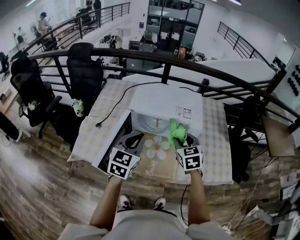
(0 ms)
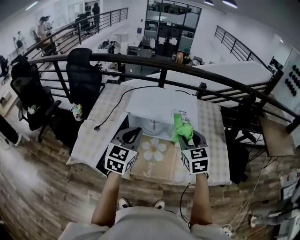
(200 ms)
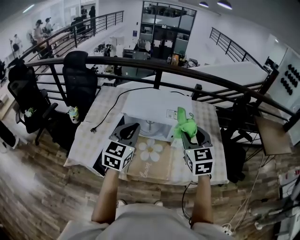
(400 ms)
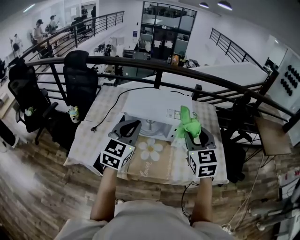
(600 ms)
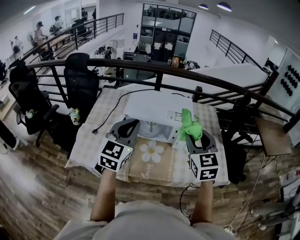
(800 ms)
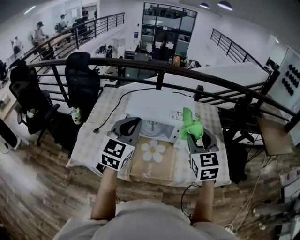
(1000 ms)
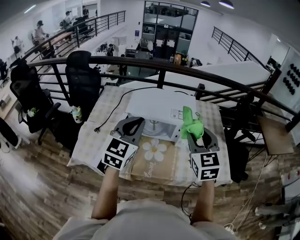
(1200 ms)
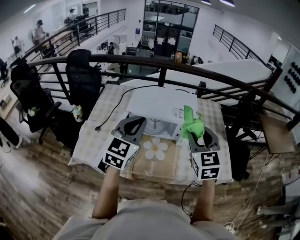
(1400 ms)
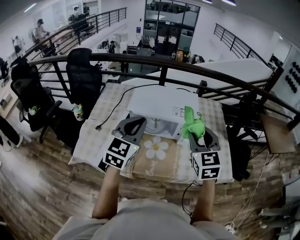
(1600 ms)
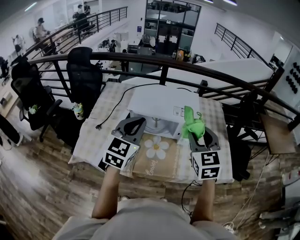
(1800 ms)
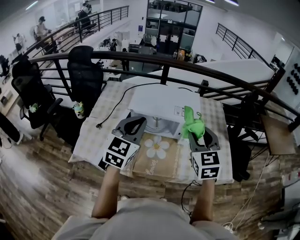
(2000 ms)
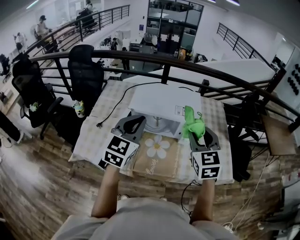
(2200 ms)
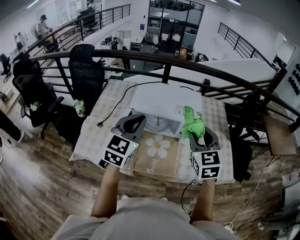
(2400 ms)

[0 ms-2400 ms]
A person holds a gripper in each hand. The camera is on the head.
0 ms to 1200 ms: Both grippers travel together upward, roughly 15 cm.
1200 ms to 2400 ms: The grippers make only small movements.

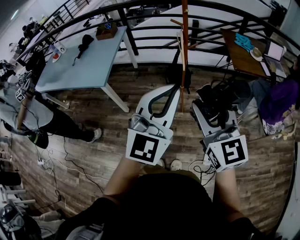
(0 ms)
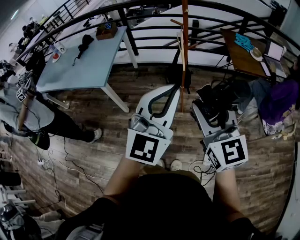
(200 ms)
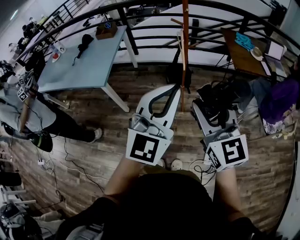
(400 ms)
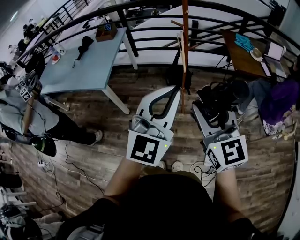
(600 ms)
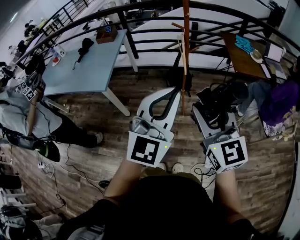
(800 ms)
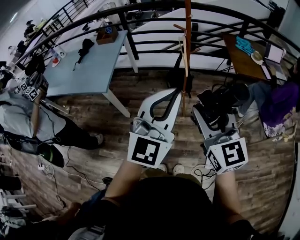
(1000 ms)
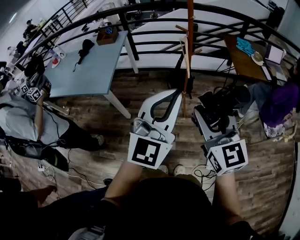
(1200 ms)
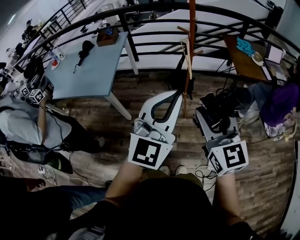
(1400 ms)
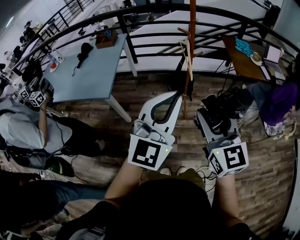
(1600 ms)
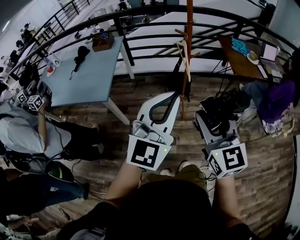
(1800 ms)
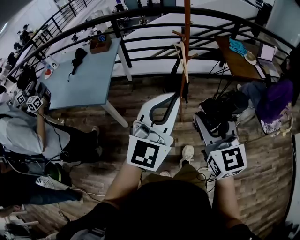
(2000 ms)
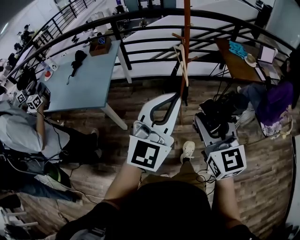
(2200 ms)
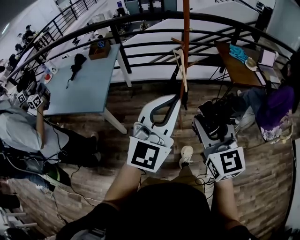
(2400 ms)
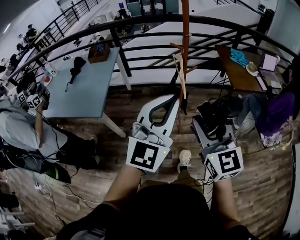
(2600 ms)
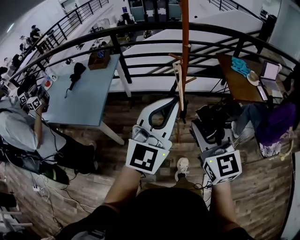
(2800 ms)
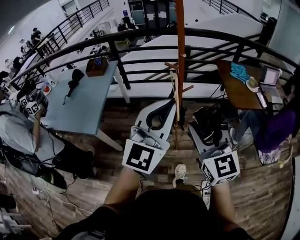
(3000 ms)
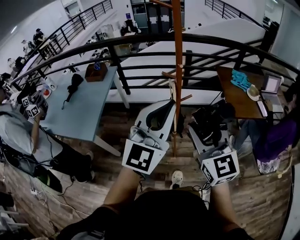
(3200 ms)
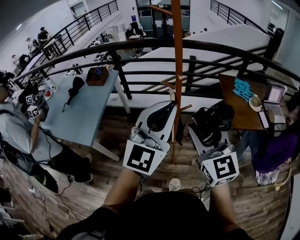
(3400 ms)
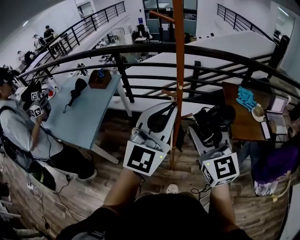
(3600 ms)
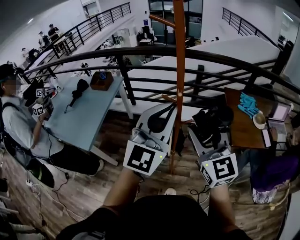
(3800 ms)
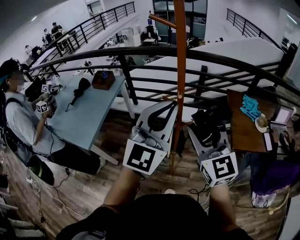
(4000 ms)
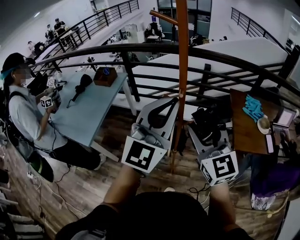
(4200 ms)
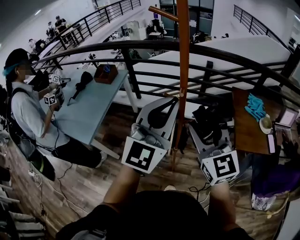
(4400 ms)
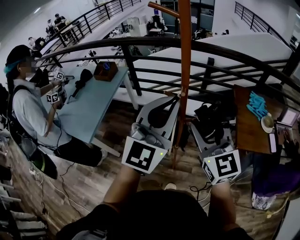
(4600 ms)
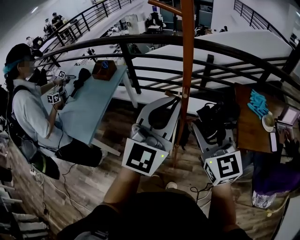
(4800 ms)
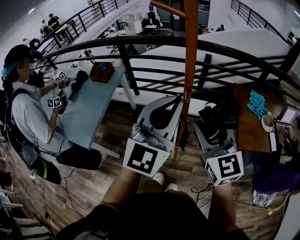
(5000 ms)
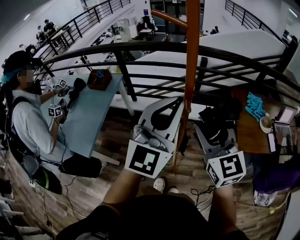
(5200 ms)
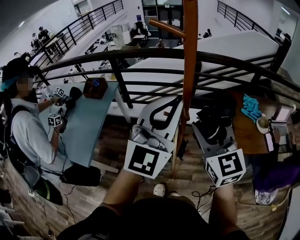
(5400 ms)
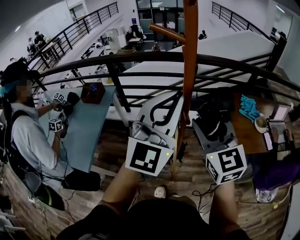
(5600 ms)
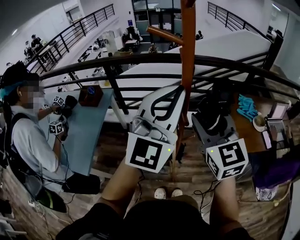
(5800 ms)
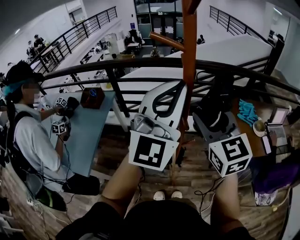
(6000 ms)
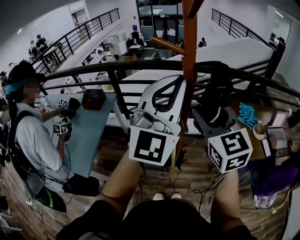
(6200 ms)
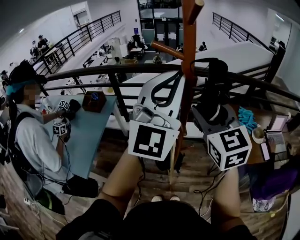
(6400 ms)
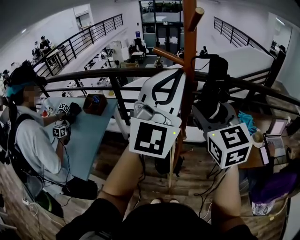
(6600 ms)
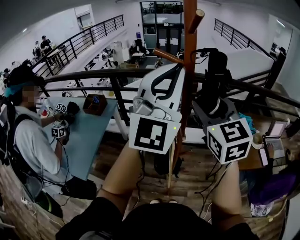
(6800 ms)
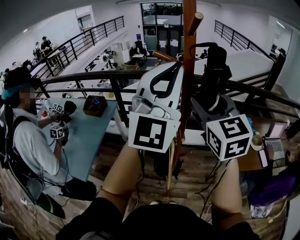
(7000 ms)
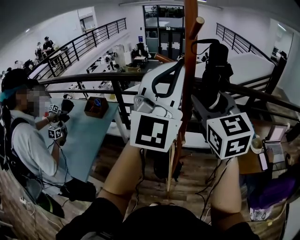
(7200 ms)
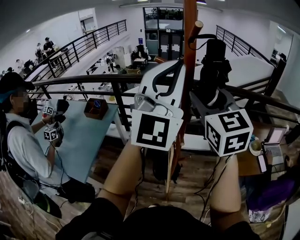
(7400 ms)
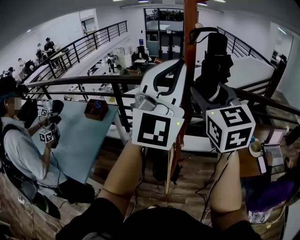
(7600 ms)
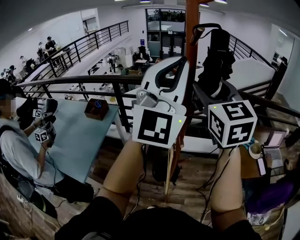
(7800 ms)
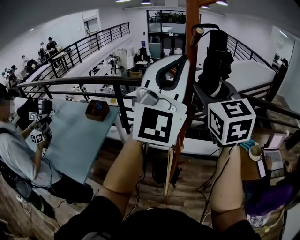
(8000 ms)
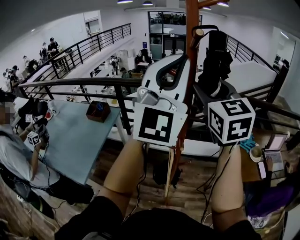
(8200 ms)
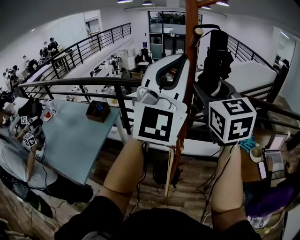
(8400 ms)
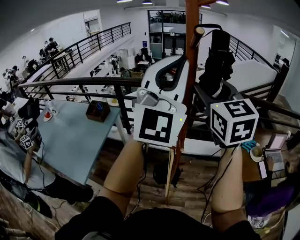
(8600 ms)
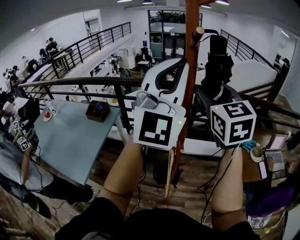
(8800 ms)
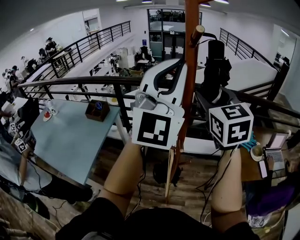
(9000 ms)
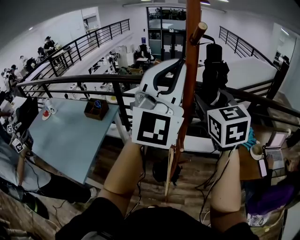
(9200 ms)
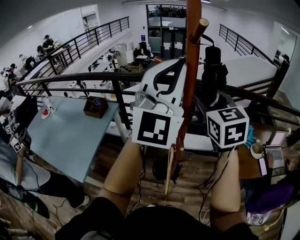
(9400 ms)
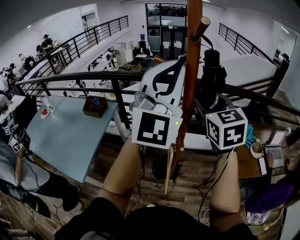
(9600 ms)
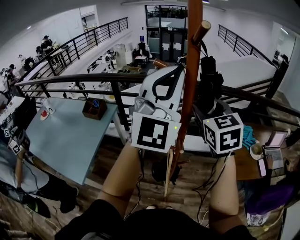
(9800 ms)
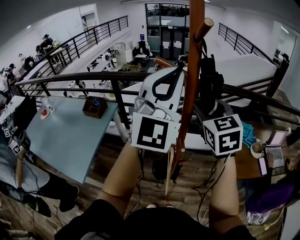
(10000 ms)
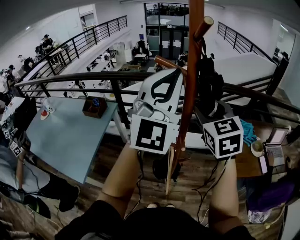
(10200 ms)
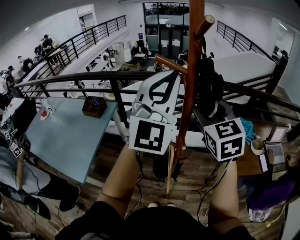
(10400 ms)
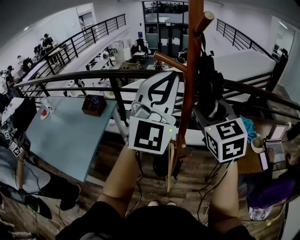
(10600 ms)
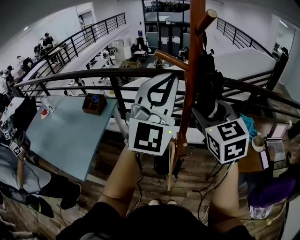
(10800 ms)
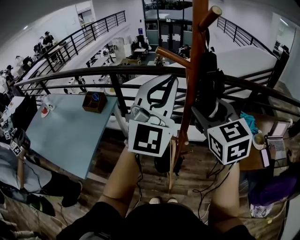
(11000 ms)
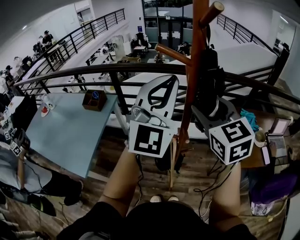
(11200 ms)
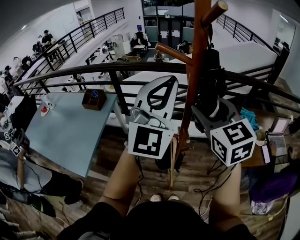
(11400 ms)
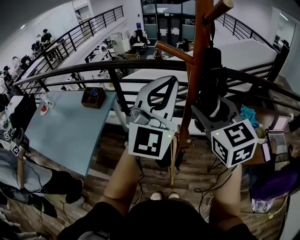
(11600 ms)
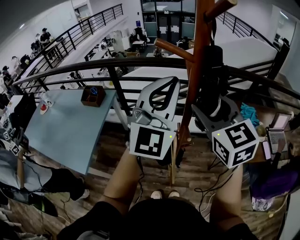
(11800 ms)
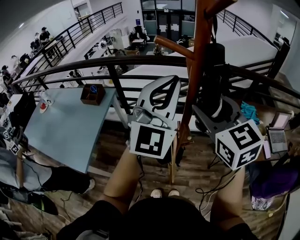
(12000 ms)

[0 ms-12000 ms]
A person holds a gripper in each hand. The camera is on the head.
0 ms to 1600 ms: Both grippers move to the left, roughly 5 cm.
1600 ms to 3000 ms: Both grippers travel together forward, approximately 15 cm.
3000 ms to 4400 ms: The left gripper goes approximately 20 cm forward and to the right, while the right gripper travels forward by roughly 20 cm.
4400 ms to 6000 ms: Both grippers travel together forward and upward, roughly 15 cm.
6000 ms to 7600 ms: The grippers both shift upward by roughly 10 cm.
7600 ms to 9000 ms: The right gripper changes place by roughly 5 cm.
9000 ms to 10400 ms: Both grippers travel together downward, some 5 cm.
10400 ms to 12000 ms: The right gripper travels backward by about 5 cm. Meanwhile the left gripper shifts some 5 cm downward.

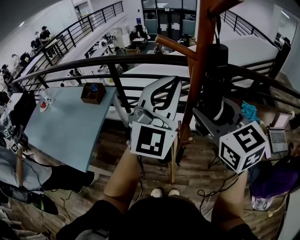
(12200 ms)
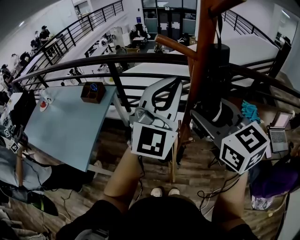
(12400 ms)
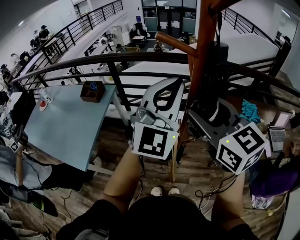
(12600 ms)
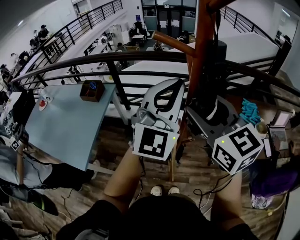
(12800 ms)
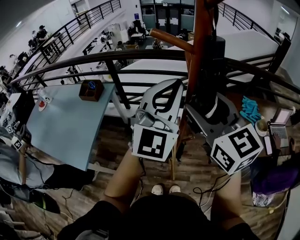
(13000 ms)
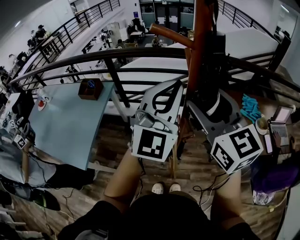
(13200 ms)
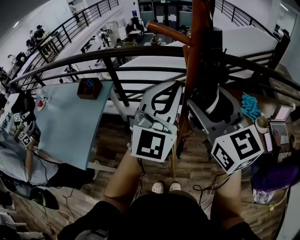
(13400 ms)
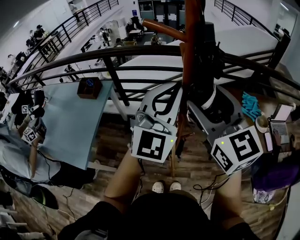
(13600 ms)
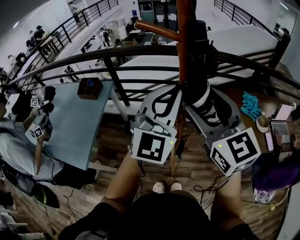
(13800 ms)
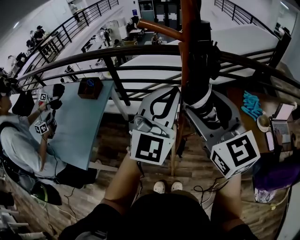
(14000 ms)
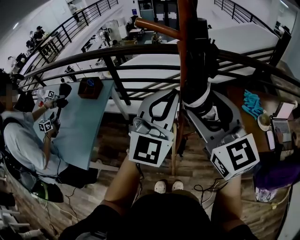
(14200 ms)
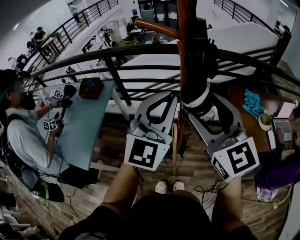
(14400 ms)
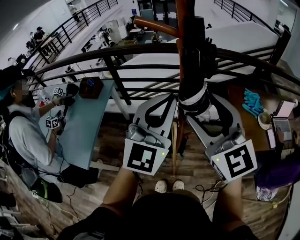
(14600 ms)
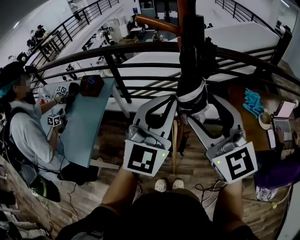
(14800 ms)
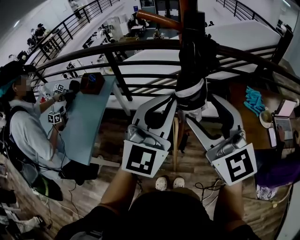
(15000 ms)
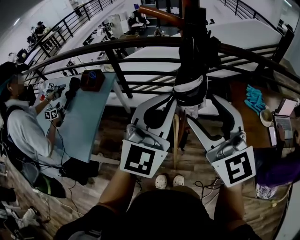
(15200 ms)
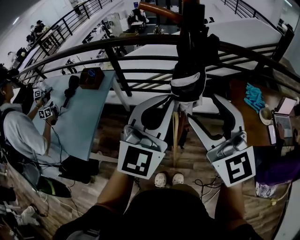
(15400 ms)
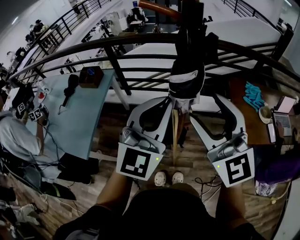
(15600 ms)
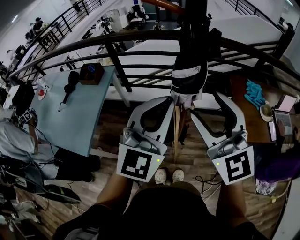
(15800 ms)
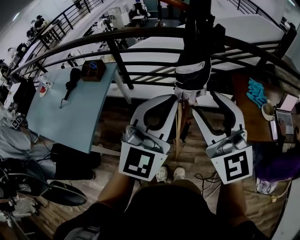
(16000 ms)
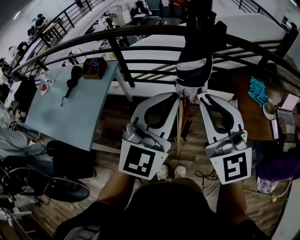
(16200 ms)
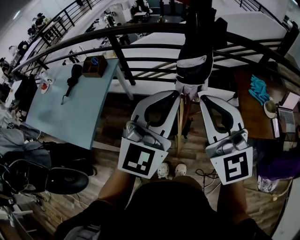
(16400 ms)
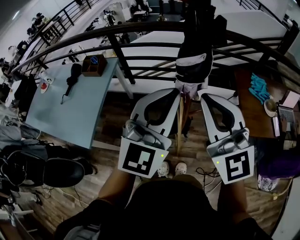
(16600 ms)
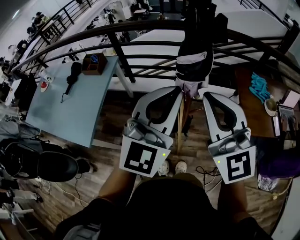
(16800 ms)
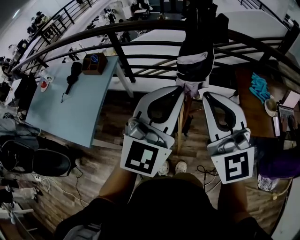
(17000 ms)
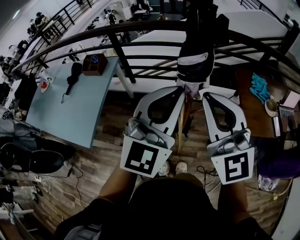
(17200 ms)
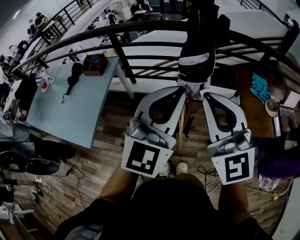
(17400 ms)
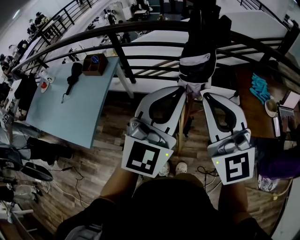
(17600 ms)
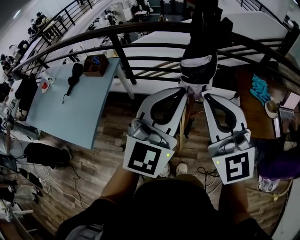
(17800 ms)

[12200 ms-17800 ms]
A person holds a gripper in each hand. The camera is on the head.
12200 ms to 13600 ms: The grippers stay close to where they were, moving slightly.
13600 ms to 15000 ms: The right gripper moves roughly 5 cm. Meanwhile the left gripper ends up some 5 cm from where it was.
15000 ms to 16400 ms: The right gripper closes its fingers.
16400 ms to 17800 ms: The two grippers keep their place.

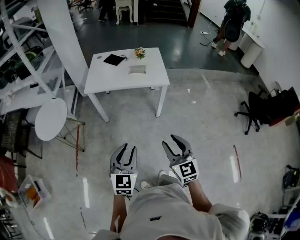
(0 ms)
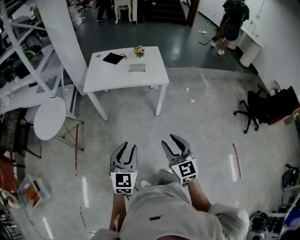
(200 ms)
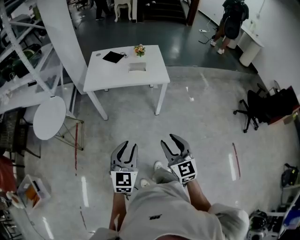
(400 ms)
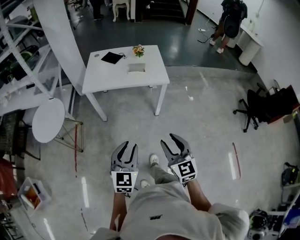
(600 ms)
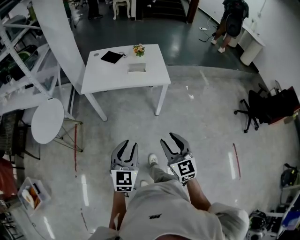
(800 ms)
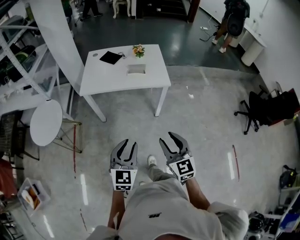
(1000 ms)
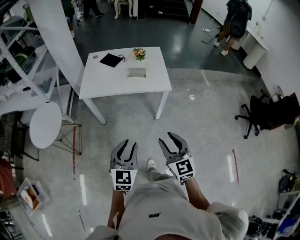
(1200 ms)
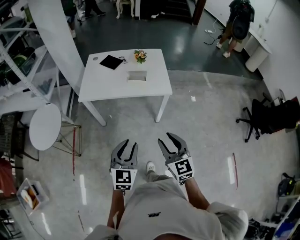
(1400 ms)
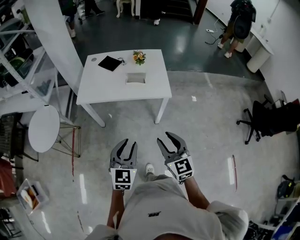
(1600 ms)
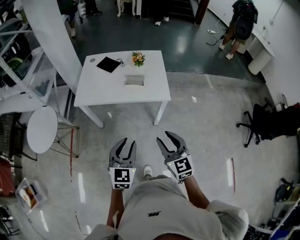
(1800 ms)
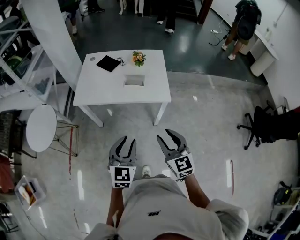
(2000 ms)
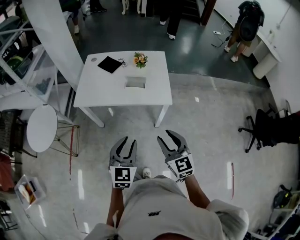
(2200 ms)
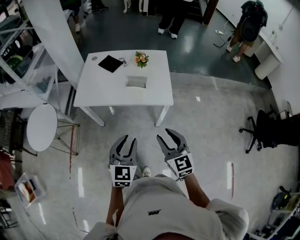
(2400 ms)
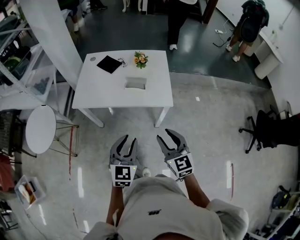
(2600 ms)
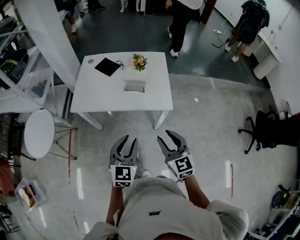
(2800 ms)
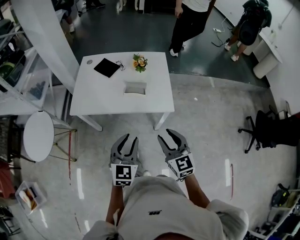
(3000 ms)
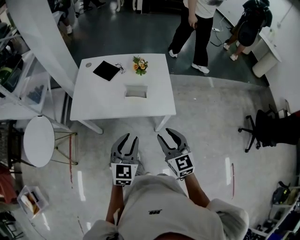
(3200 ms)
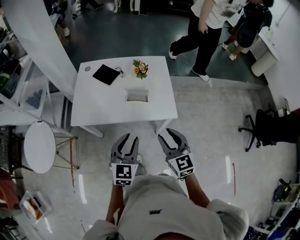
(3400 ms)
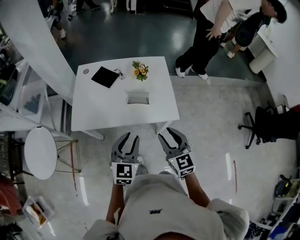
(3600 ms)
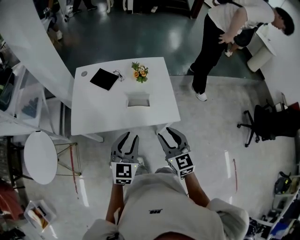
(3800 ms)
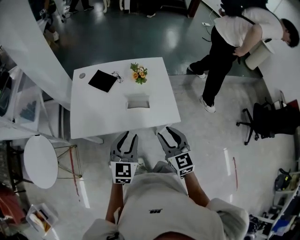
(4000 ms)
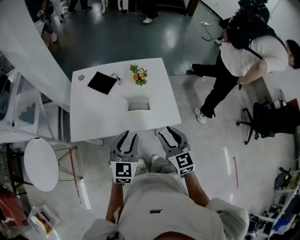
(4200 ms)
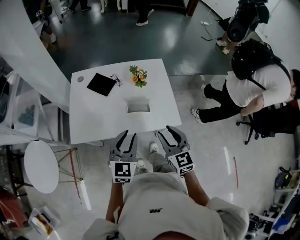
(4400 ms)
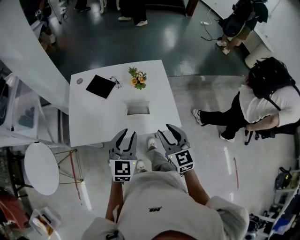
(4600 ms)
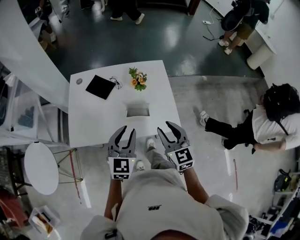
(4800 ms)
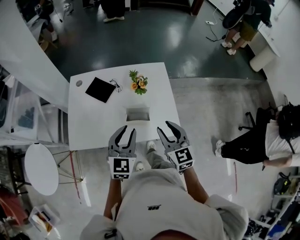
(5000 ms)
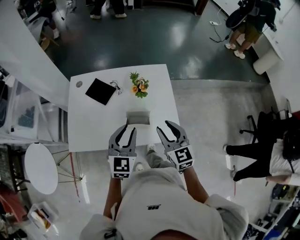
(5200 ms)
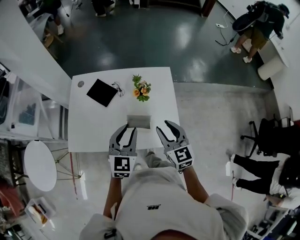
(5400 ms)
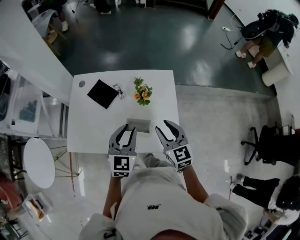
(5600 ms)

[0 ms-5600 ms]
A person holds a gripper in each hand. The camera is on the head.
0 ms to 1400 ms: The grippers both shift forward by some 20 cm.
1400 ms to 2800 ms: Both grippers move forward, roughly 20 cm.
2800 ms to 4200 ms: The left gripper moves forward, some 20 cm; the right gripper goes about 20 cm forward and to the left.
4200 ms to 5600 ms: Both grippers move forward, some 20 cm.
